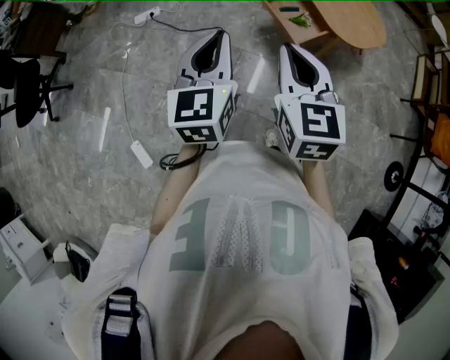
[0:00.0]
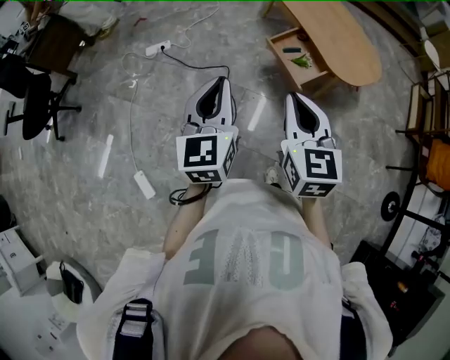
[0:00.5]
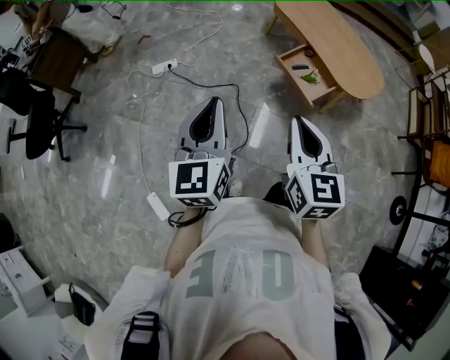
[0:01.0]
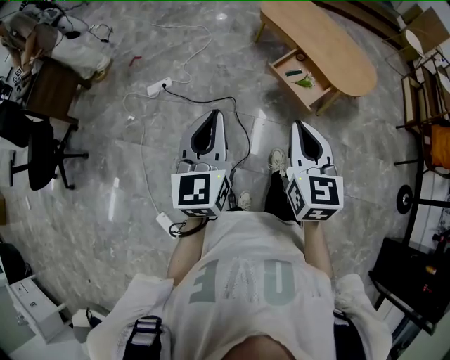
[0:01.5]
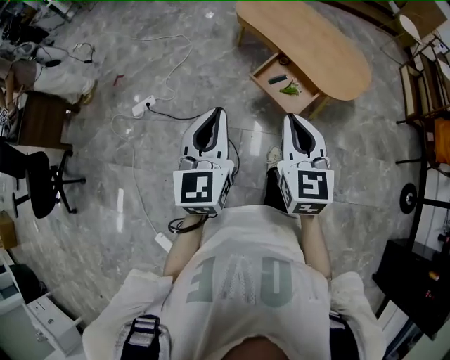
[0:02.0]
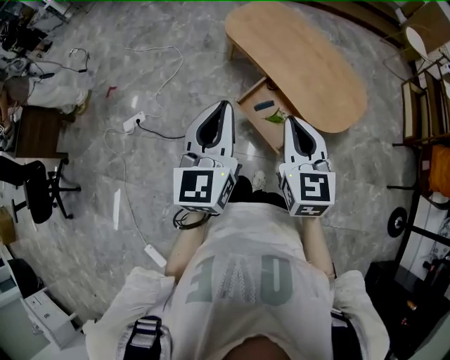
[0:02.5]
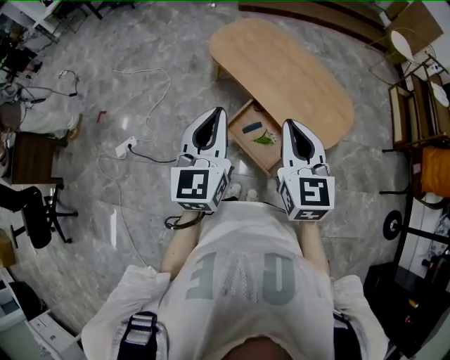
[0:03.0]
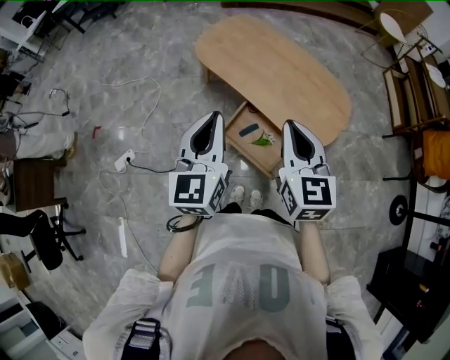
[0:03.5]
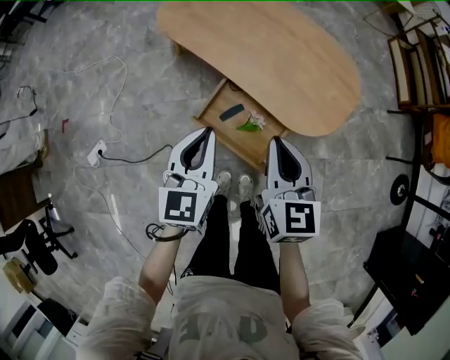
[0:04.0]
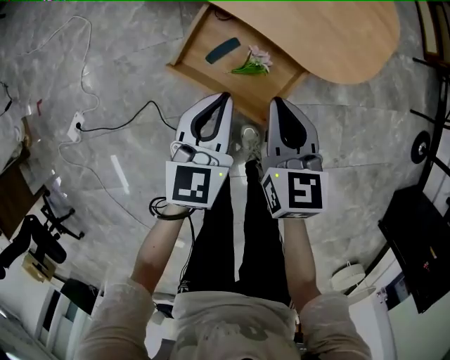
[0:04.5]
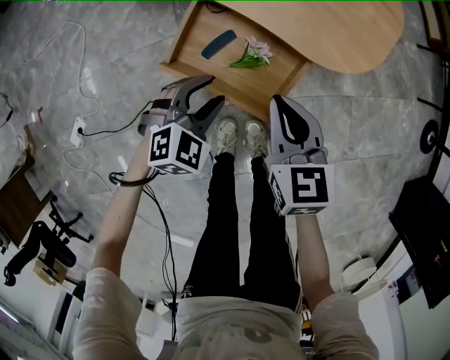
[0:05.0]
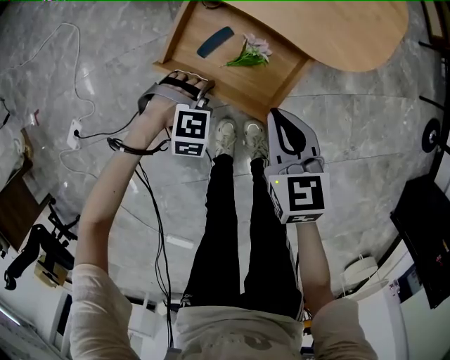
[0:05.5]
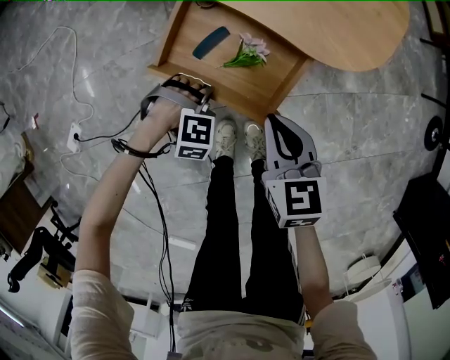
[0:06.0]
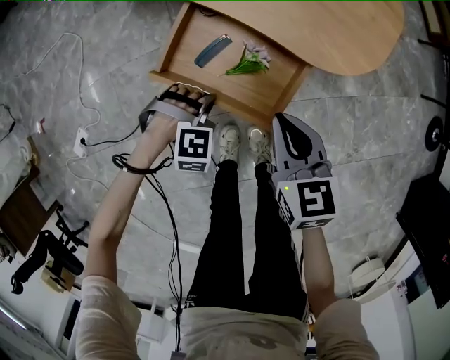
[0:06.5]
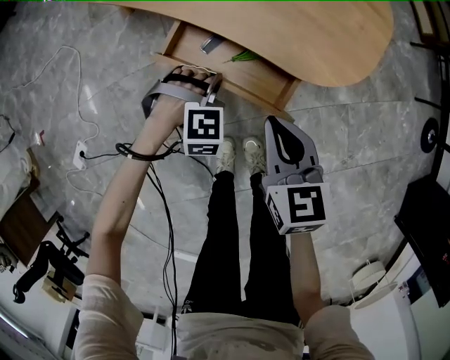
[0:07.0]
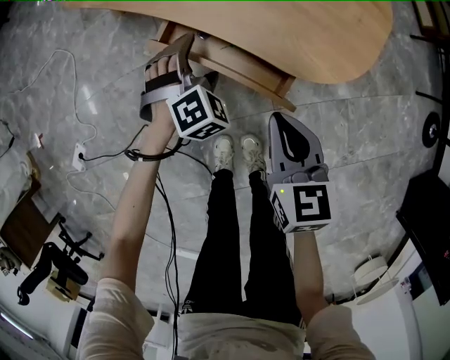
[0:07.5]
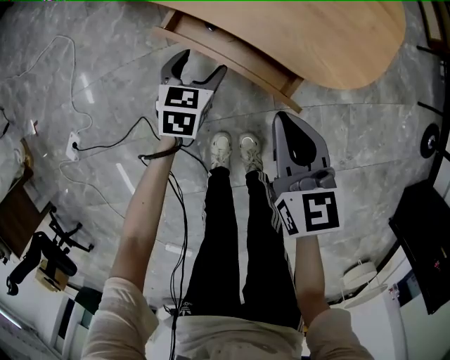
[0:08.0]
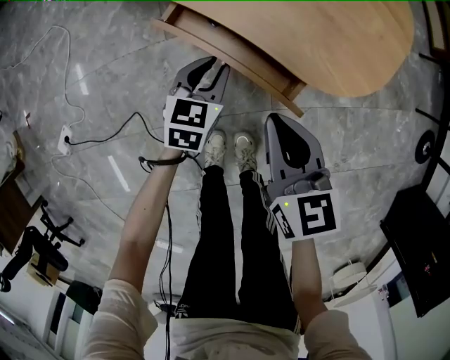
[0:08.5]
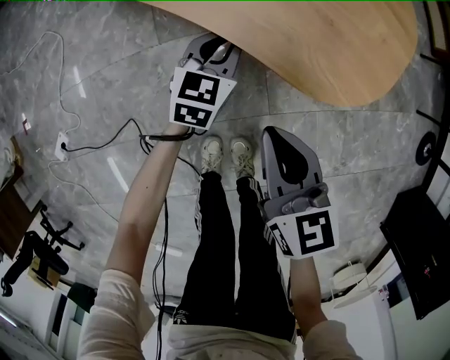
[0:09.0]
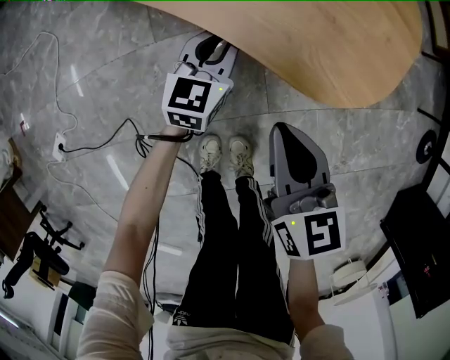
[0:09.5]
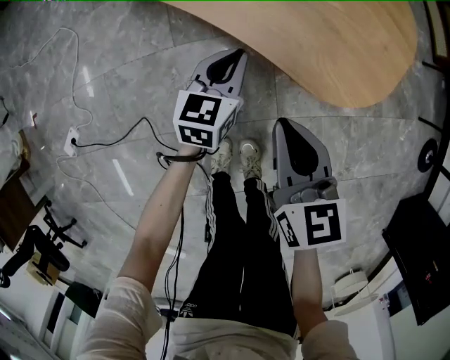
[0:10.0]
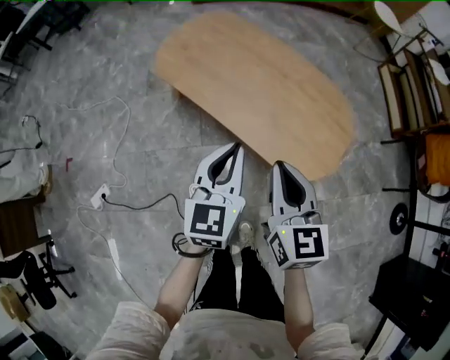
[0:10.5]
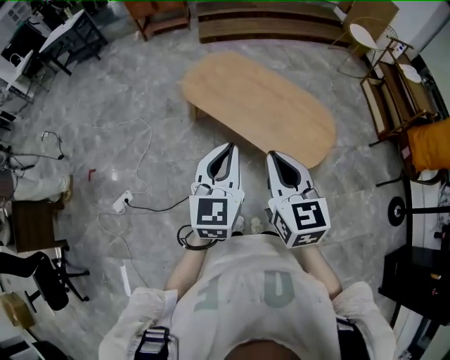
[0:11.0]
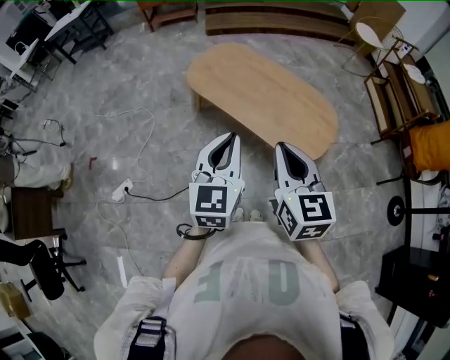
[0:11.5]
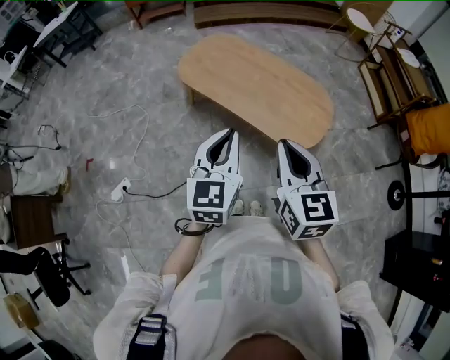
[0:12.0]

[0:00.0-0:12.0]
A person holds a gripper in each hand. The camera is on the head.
0:00.0 to 0:02.0: The two grippers go approximately 15 cm forward.
0:02.0 to 0:04.0: Both grippers move forward, downward and to the right, approximately 40 cm. The right gripper changes its angle by roughly 20 degrees. The left gripper changes its angle by some 20 degrees.
0:04.0 to 0:06.0: The left gripper moves downward, some 40 cm, and angles its fingers downward, by approximately 60 degrees. The right gripper moves downward, approximately 30 cm.
0:06.0 to 0:08.0: The left gripper moves roughly 15 cm, rotates around the line of its fingers by approximately 90 degrees, counterclockwise from behind, and opens up; the right gripper shifts by roughly 10 cm.
0:08.0 to 0:10.0: The left gripper shifts by about 10 cm, turns by some 20 degrees, and closes.
0:10.0 to 0:12.0: Both grippers move upward, approximately 50 cm. The right gripper changes its angle by about 20 degrees, while the left gripper rotates approximately 30 degrees.

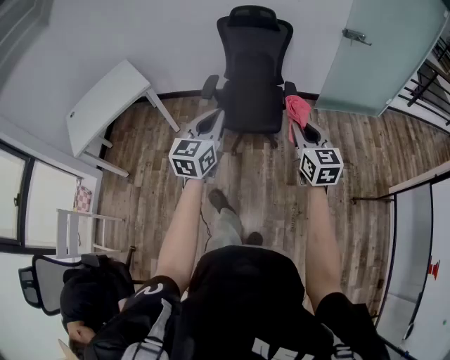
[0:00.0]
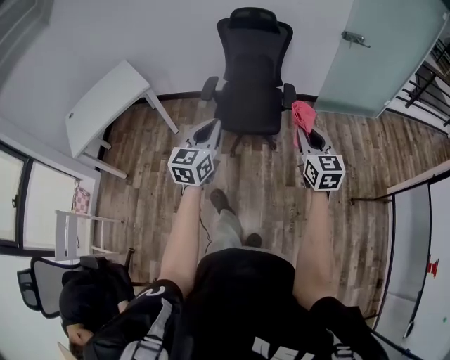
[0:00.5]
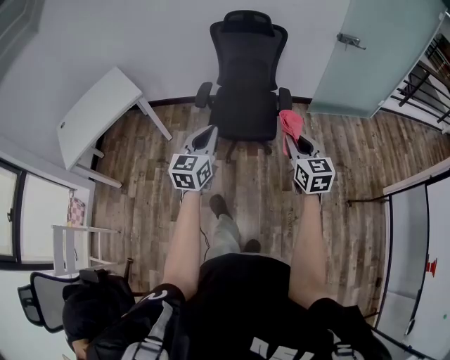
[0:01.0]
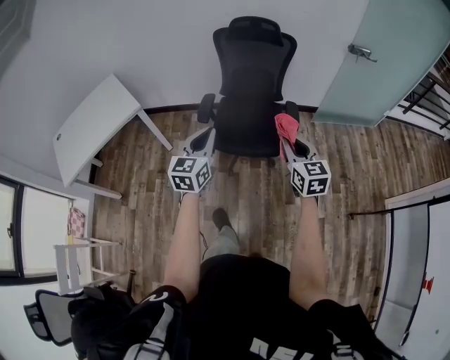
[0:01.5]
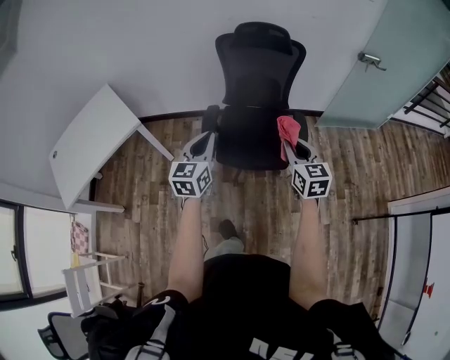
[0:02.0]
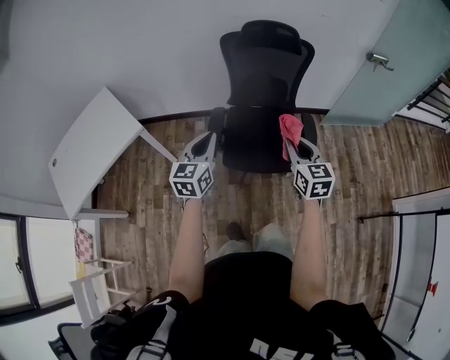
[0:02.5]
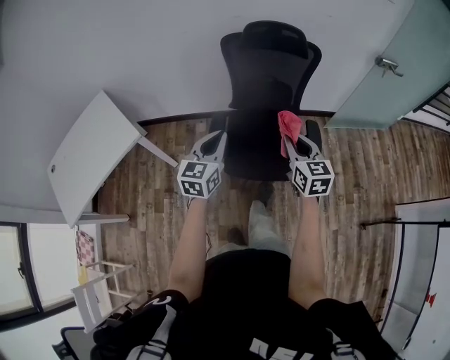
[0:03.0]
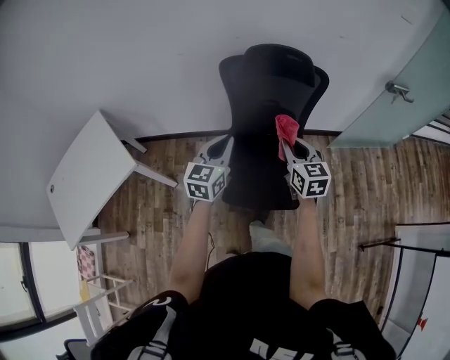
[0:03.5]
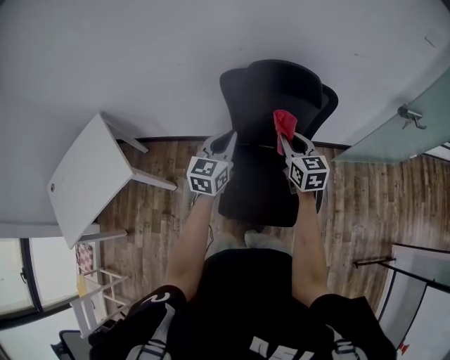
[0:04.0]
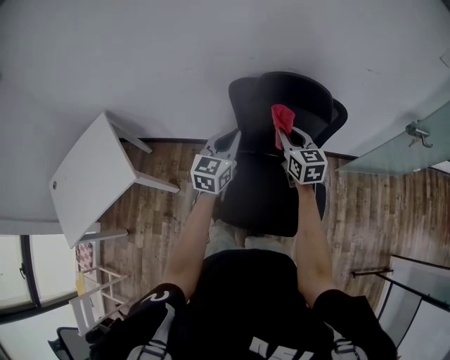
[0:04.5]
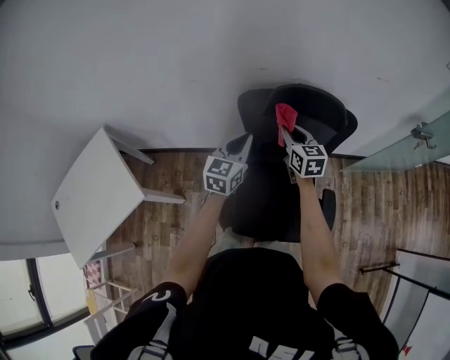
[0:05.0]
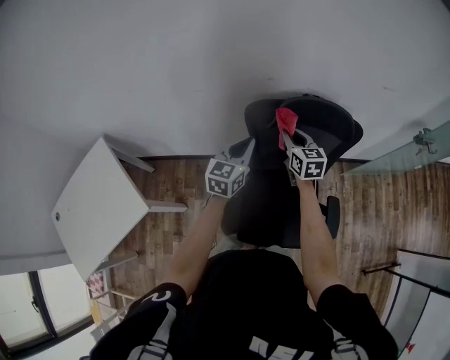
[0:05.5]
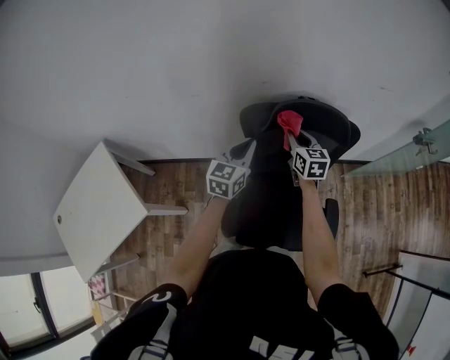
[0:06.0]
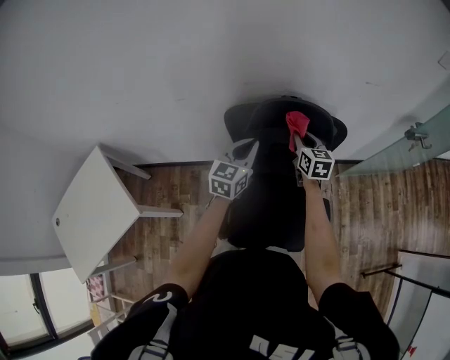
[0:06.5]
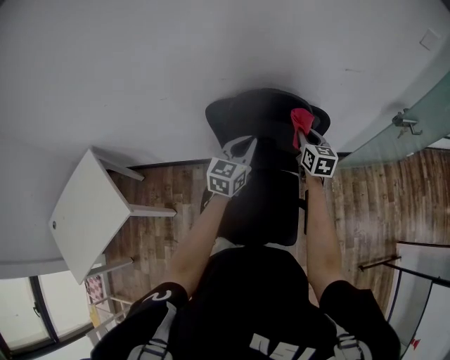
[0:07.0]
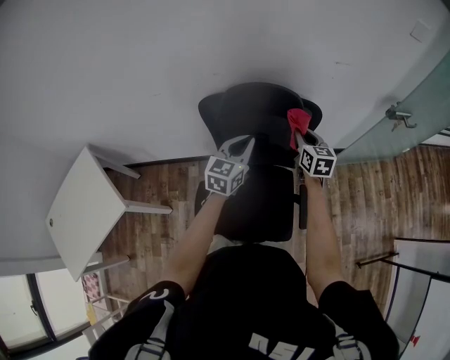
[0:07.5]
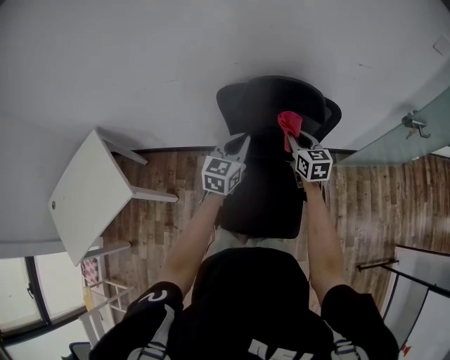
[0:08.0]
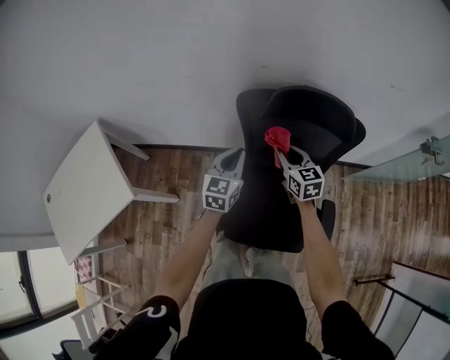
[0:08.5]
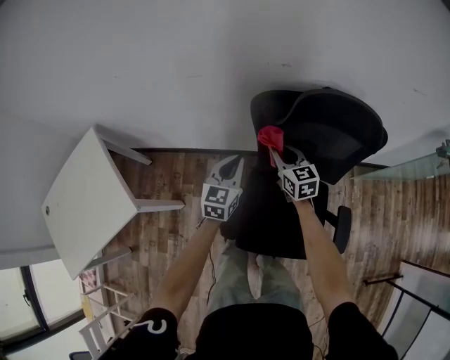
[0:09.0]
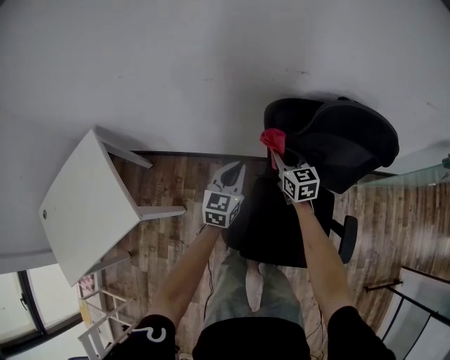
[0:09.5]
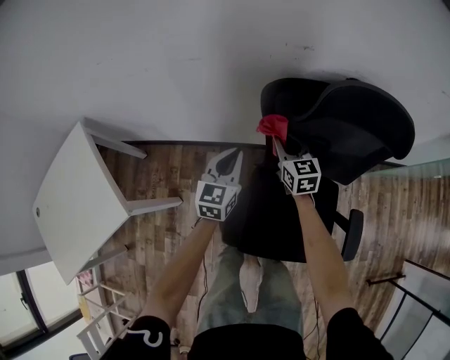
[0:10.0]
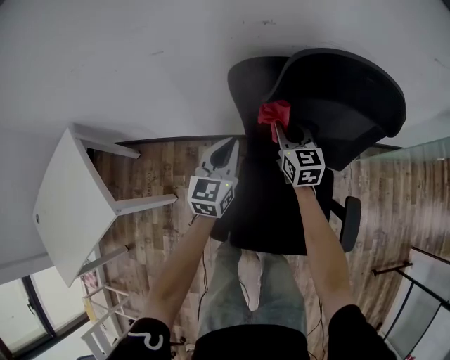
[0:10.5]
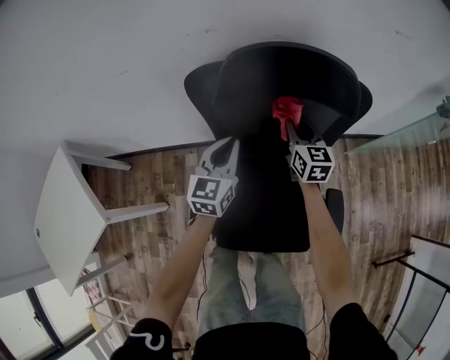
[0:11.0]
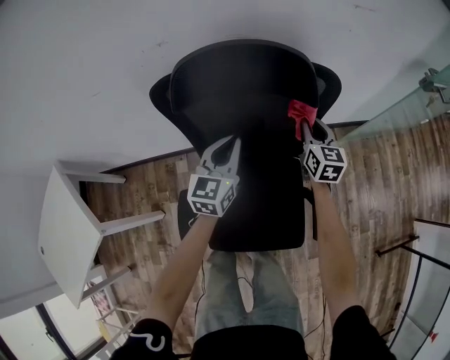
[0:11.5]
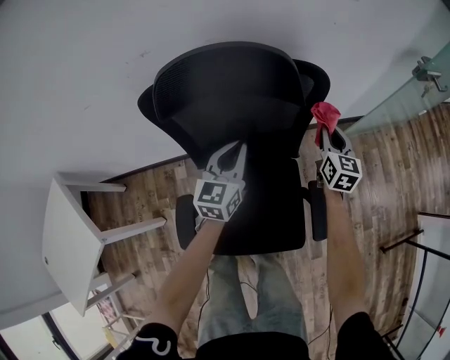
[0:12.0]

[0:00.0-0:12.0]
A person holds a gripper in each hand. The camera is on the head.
0:00.0 to 0:02.0: The two grippers go some 30 cm forward and to the left.
0:02.0 to 0:04.0: The pair of grippers is taken forward, approximately 40 cm.
0:04.0 to 0:06.0: The grippers both shift forward by about 15 cm.
0:06.0 to 0:08.0: The two grippers go roughly 10 cm to the right and backward.
0:08.0 to 0:10.0: The left gripper is displaced downward, to the left and forward by approximately 30 cm. The right gripper goes about 30 cm to the left, downward and forward.
0:10.0 to 0:12.0: Both grippers move to the right, roughly 40 cm. The right gripper rotates roughly 30 degrees.

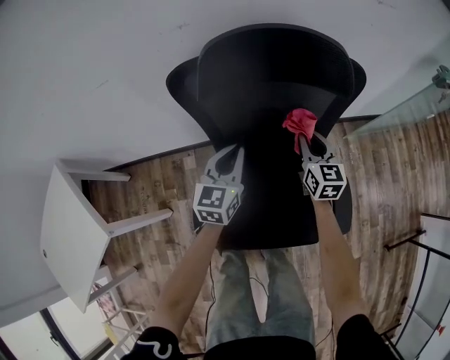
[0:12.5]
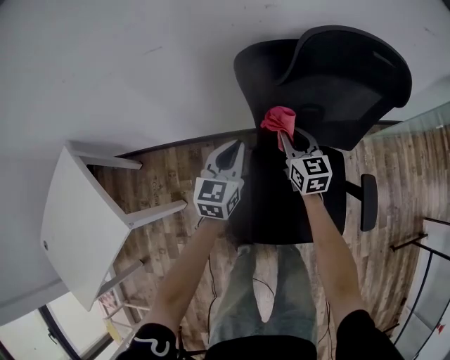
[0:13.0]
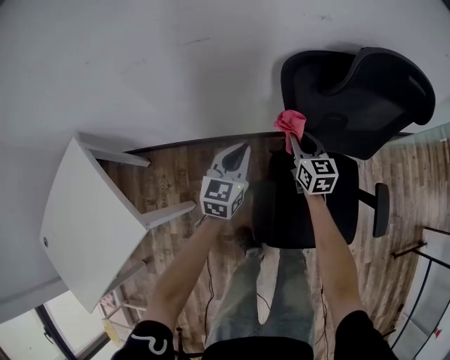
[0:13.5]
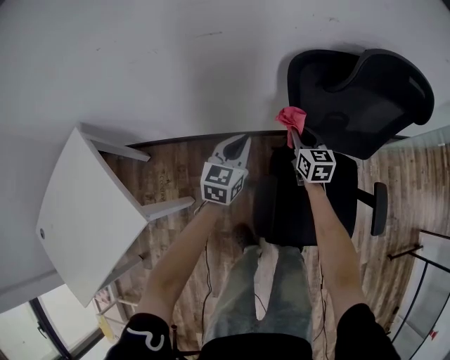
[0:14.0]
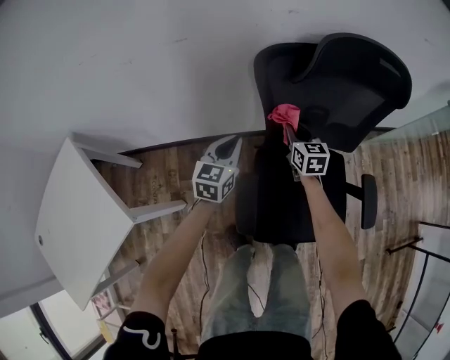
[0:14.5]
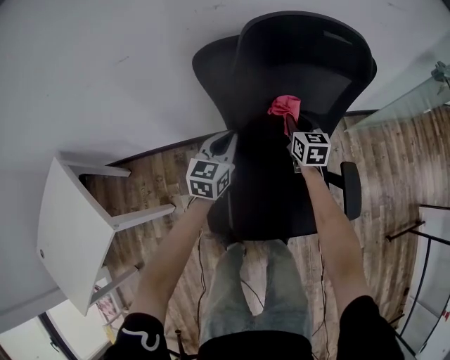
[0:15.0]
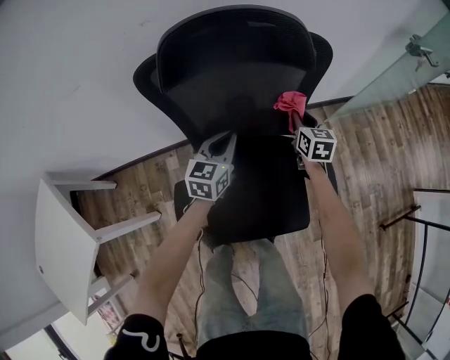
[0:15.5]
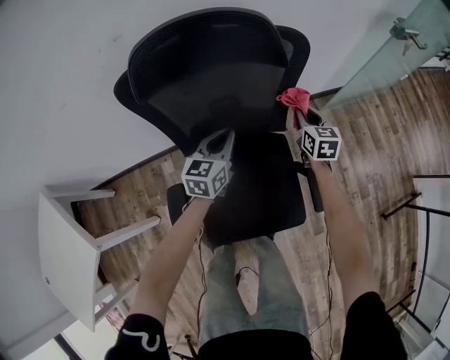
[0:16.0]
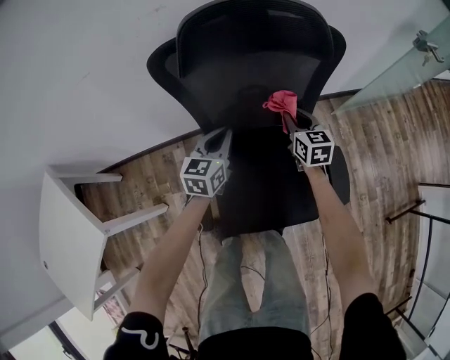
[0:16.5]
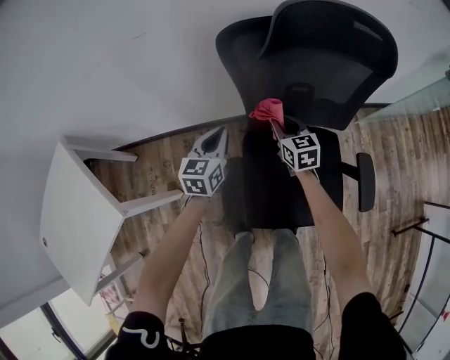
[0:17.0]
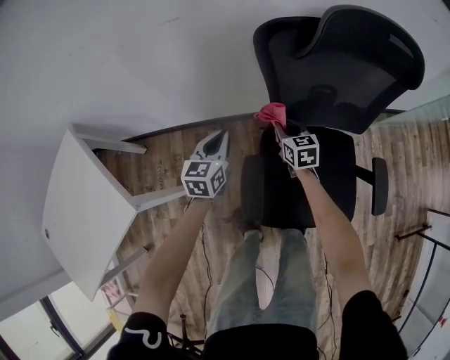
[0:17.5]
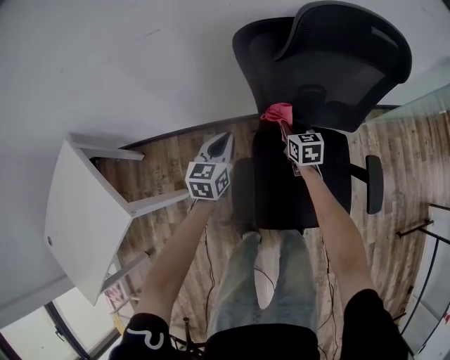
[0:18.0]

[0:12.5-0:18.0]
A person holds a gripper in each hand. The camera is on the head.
0:12.5 to 0:14.5: The grippers both shift to the left by about 20 cm.
0:14.5 to 0:16.0: The grippers both shift to the right by about 35 cm.
0:16.0 to 0:18.0: The grippers both shift to the left by approximately 35 cm.
